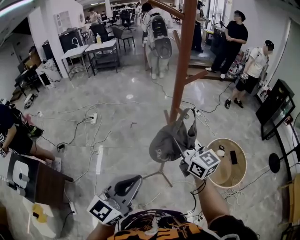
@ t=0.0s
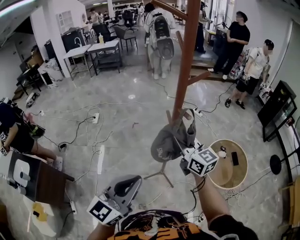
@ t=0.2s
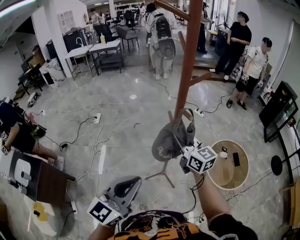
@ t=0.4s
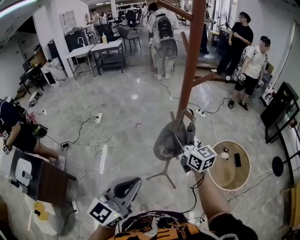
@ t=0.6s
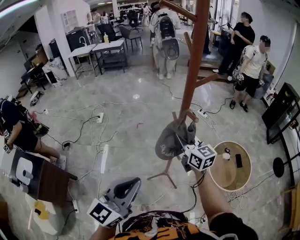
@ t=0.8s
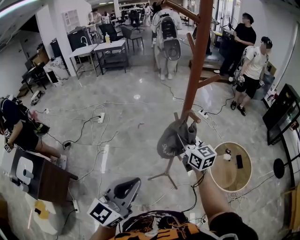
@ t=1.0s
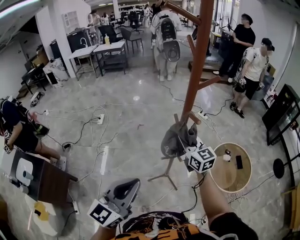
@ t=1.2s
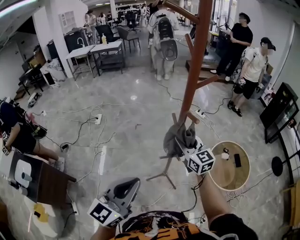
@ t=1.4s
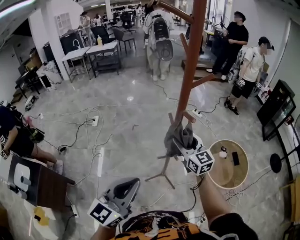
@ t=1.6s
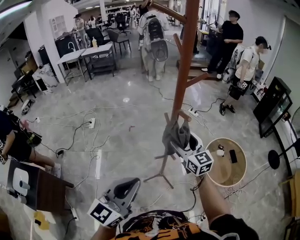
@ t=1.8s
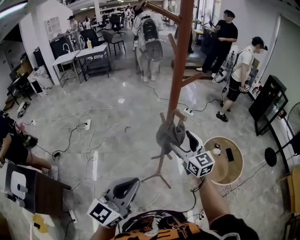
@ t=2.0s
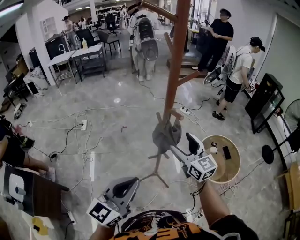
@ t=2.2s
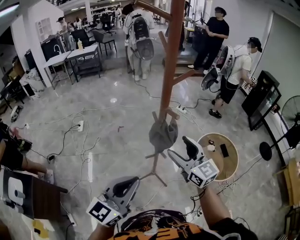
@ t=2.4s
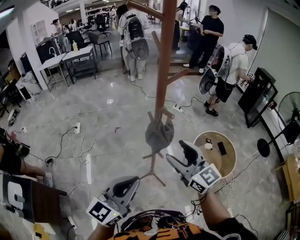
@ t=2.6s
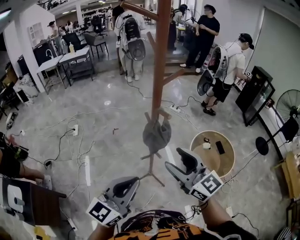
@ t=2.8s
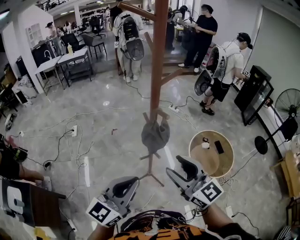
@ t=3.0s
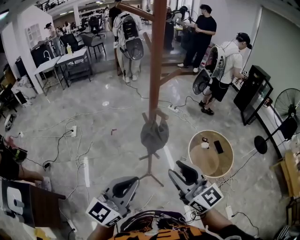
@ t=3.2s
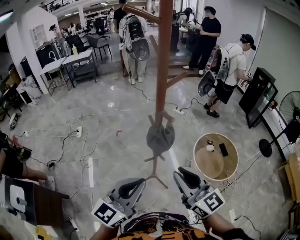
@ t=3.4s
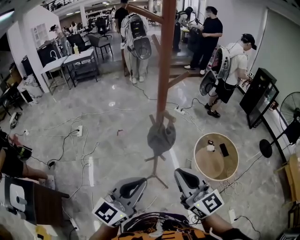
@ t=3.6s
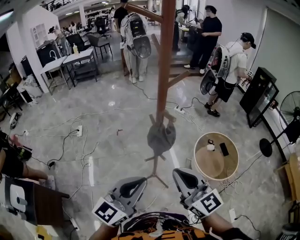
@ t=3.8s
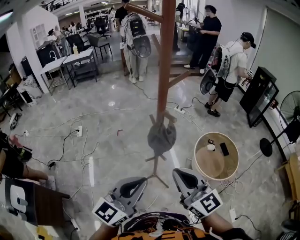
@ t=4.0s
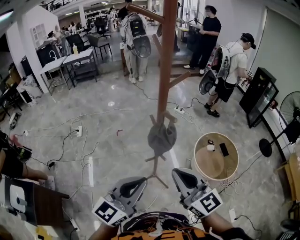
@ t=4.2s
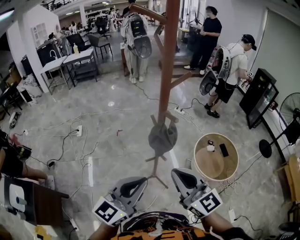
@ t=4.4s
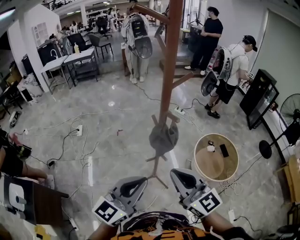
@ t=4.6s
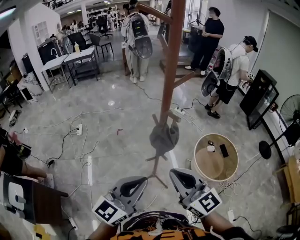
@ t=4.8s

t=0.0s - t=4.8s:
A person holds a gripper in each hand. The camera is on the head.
t=0.0s - t=1.6s: The right gripper is displaced downward and forward by about 10 cm, and opens up.
t=1.6s - t=3.2s: The left gripper changes place by roughly 5 cm; the right gripper goes some 20 cm backward and upward.
t=3.2s - t=4.8s: The right gripper closes.

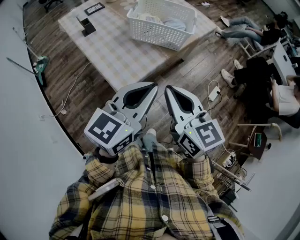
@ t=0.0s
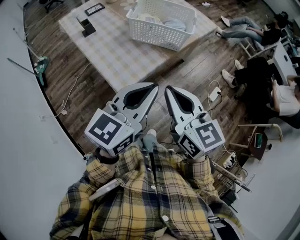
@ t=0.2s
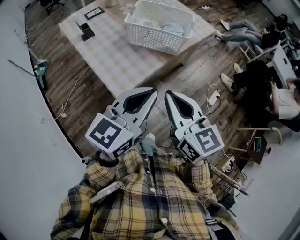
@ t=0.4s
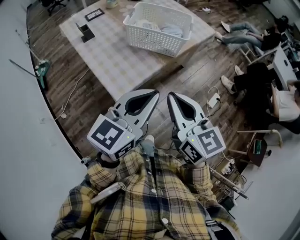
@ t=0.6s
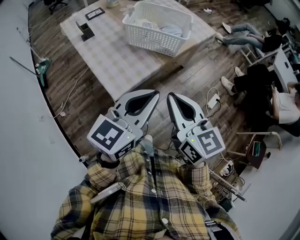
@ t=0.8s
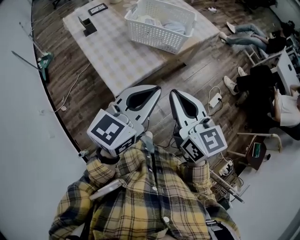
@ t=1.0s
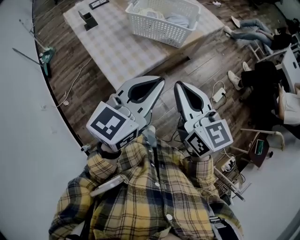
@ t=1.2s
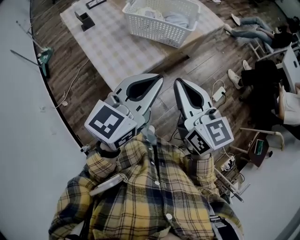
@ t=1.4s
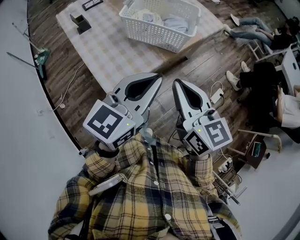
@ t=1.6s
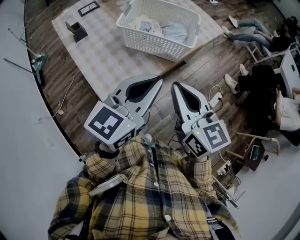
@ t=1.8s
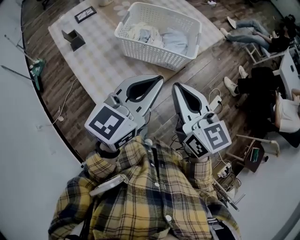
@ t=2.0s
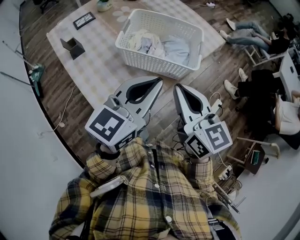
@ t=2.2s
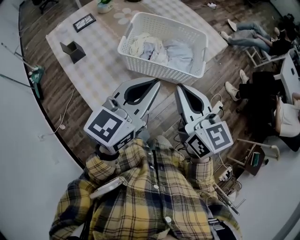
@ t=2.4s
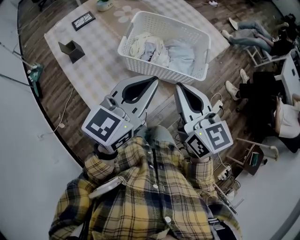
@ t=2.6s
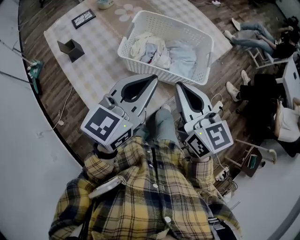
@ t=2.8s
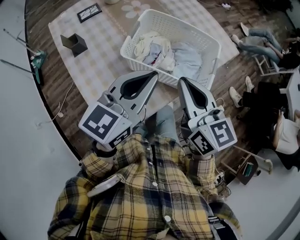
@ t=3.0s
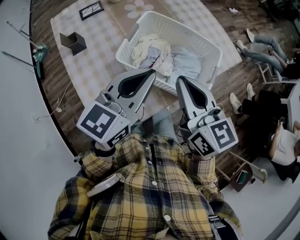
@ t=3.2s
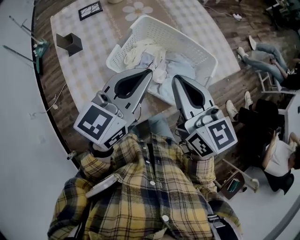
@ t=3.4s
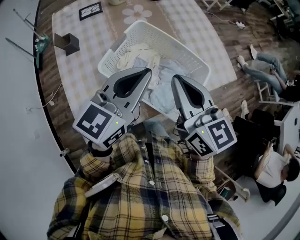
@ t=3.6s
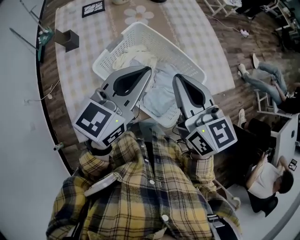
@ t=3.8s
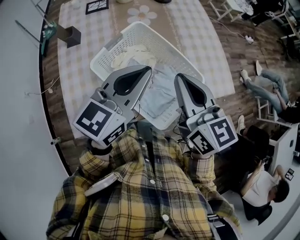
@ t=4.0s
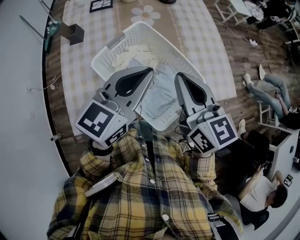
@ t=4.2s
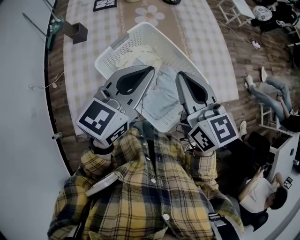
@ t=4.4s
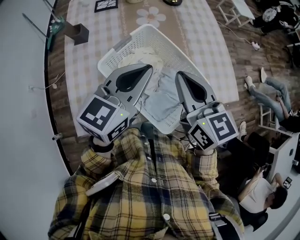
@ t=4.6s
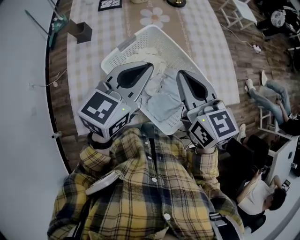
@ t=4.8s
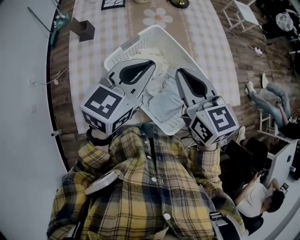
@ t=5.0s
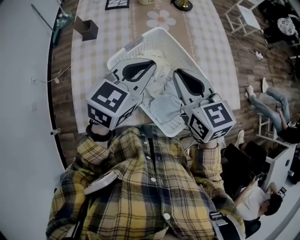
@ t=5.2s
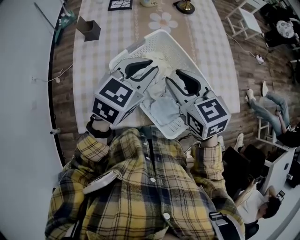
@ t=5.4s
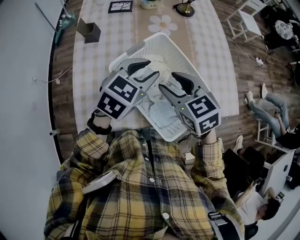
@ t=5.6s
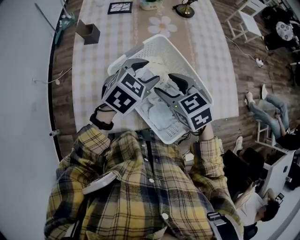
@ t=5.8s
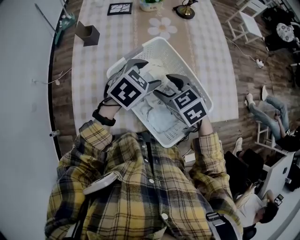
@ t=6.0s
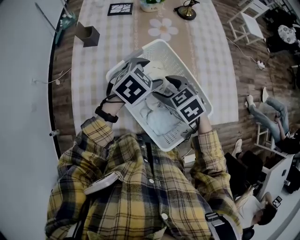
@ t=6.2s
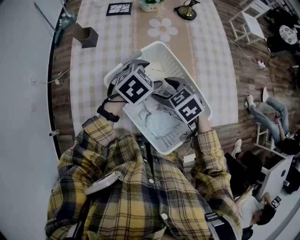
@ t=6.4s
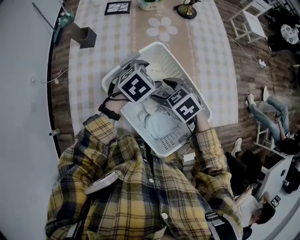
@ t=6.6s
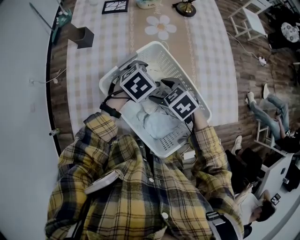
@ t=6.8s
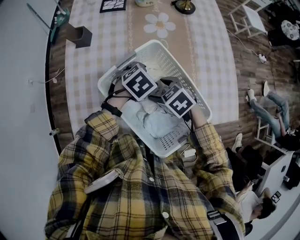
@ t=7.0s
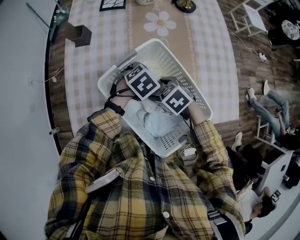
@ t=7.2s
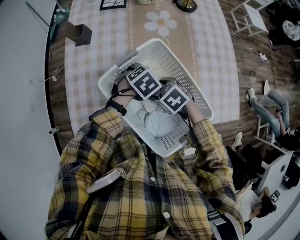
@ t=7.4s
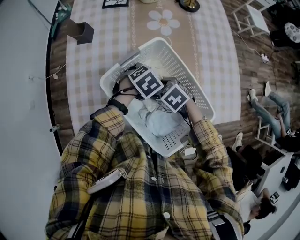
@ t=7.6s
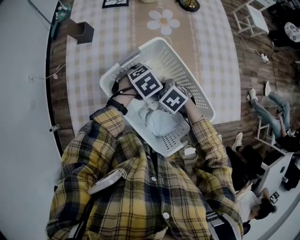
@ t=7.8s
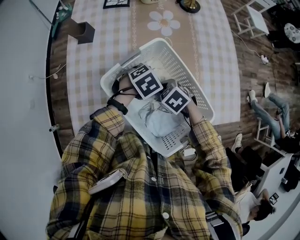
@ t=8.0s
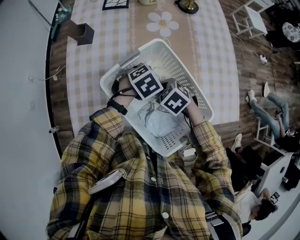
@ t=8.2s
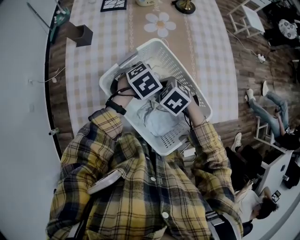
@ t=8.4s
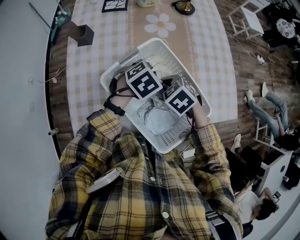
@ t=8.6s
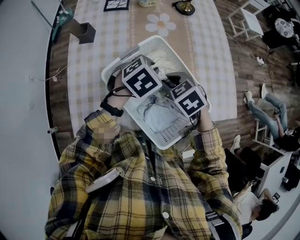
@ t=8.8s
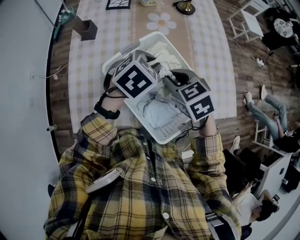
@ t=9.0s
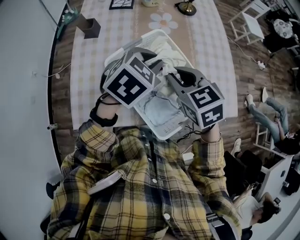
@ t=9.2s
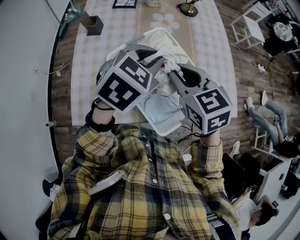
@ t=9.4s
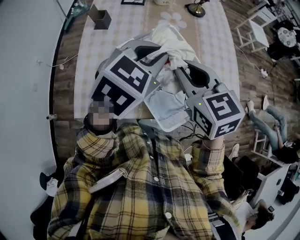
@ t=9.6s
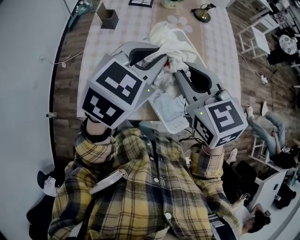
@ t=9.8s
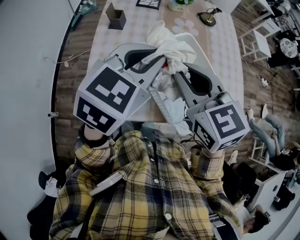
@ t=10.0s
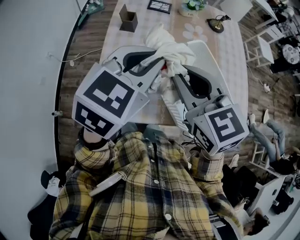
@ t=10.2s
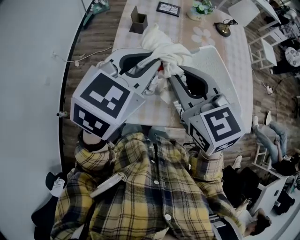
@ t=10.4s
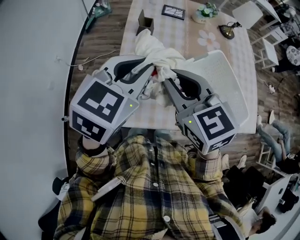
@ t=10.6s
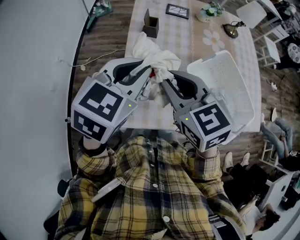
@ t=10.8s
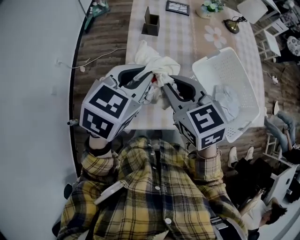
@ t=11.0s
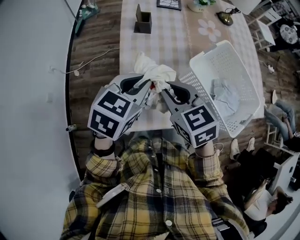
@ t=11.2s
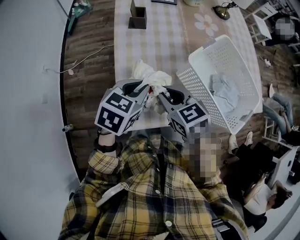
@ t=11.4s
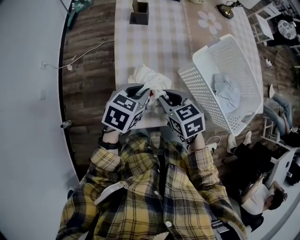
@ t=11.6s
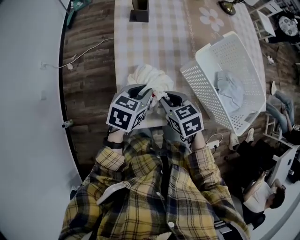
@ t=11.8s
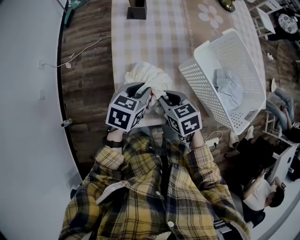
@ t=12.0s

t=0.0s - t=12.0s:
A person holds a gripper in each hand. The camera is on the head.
t=0.0s - t=1.6s: The left gripper moves forward, about 10 cm. Meanwhile the right gripper shifts approximately 10 cm forward and to the right.
t=1.6s - t=3.0s: The two grippers go roughly 25 cm forward.
t=3.0s - t=4.4s: Both grippers move forward and to the right, approximately 15 cm. The left gripper swivels roughly 20 degrees. Meanwhile the right gripper turns by some 20 degrees.
t=4.4s - t=6.0s: The left gripper travels downward and forward by roughly 15 cm, points its fingers about 40 degrees further downward, and opens its fingers. The right gripper shifts some 15 cm downward and to the left, tips its fingers downward by some 30 degrees, and opens up.
t=6.0s - t=7.6s: The two grippers go approximately 15 cm downward. The left gripper swivels approximately 20 degrees, while the right gripper swivels approximately 20 degrees.
t=7.6s - t=9.0s: The two grippers go roughly 15 cm upward. The left gripper turns by approximately 20 degrees, and closes; the right gripper swivels roughly 30 degrees, and closes.
t=9.0s - t=10.4s: Both grippers travel together to the left and upward, approximately 30 cm. The right gripper turns by roughly 20 degrees, while the left gripper changes its angle by some 30 degrees.
t=10.4s - t=12.0s: The grippers both shift downward by about 30 cm. The left gripper swivels about 30 degrees. Meanwhile the right gripper swivels approximately 30 degrees.

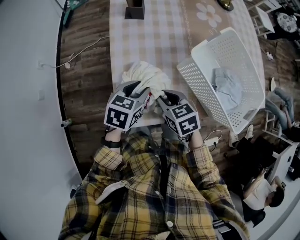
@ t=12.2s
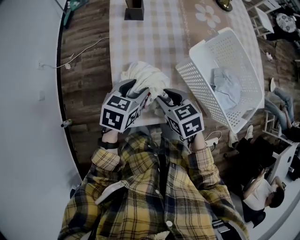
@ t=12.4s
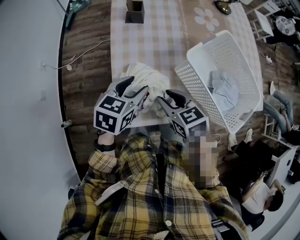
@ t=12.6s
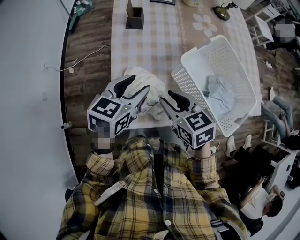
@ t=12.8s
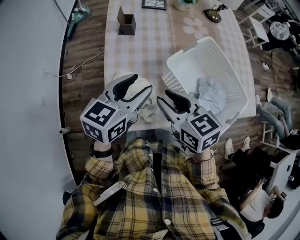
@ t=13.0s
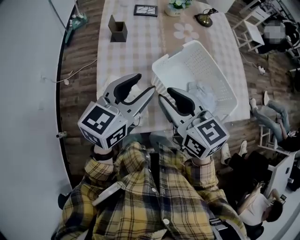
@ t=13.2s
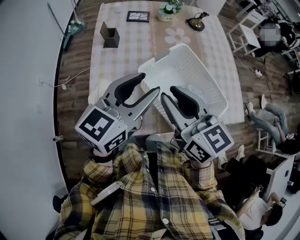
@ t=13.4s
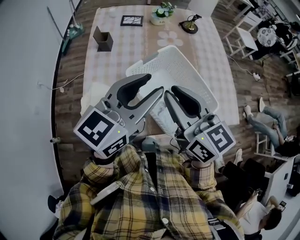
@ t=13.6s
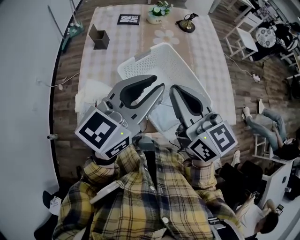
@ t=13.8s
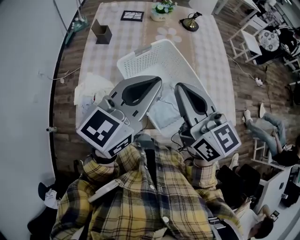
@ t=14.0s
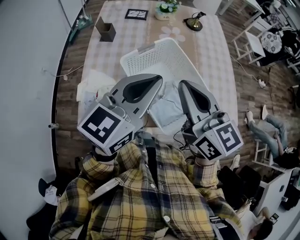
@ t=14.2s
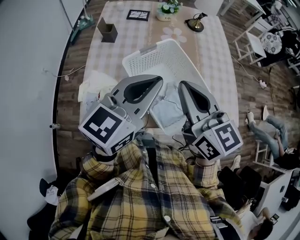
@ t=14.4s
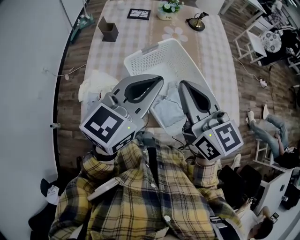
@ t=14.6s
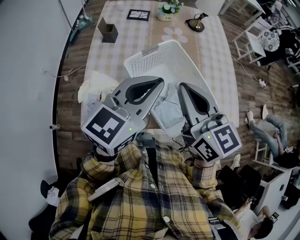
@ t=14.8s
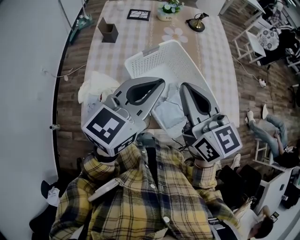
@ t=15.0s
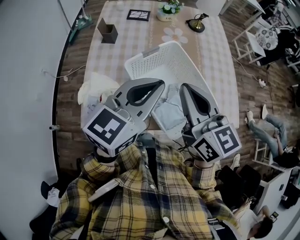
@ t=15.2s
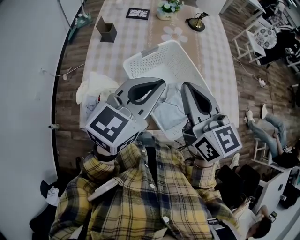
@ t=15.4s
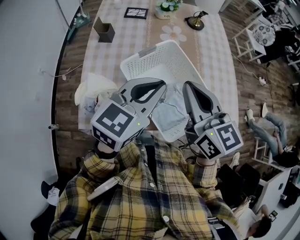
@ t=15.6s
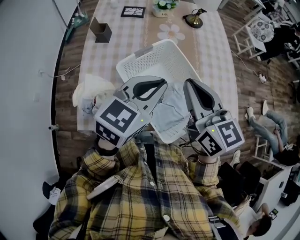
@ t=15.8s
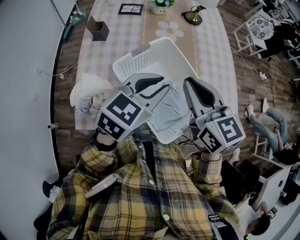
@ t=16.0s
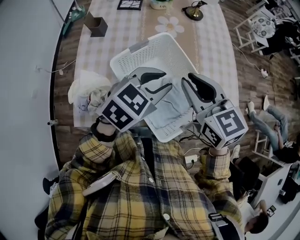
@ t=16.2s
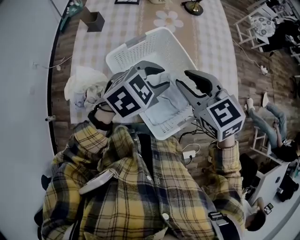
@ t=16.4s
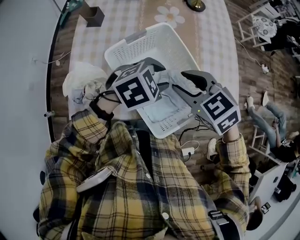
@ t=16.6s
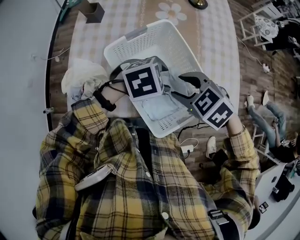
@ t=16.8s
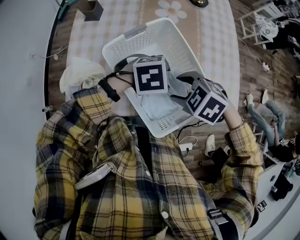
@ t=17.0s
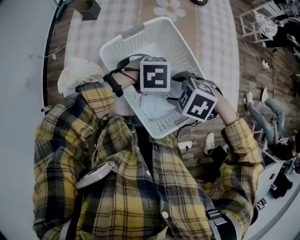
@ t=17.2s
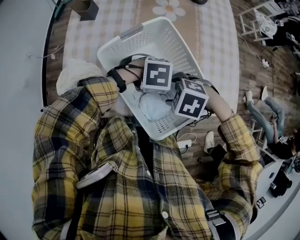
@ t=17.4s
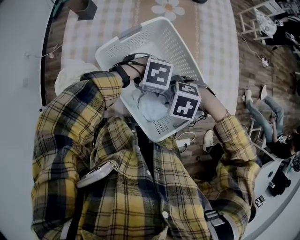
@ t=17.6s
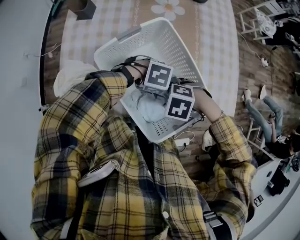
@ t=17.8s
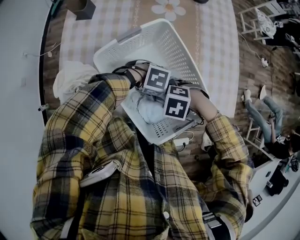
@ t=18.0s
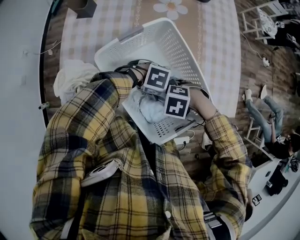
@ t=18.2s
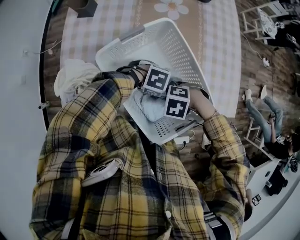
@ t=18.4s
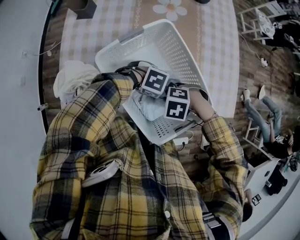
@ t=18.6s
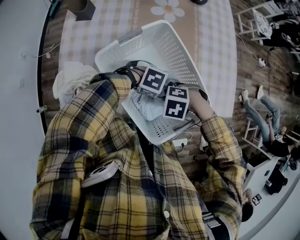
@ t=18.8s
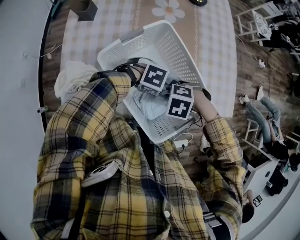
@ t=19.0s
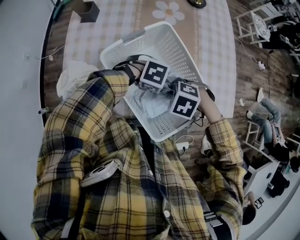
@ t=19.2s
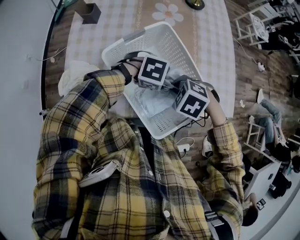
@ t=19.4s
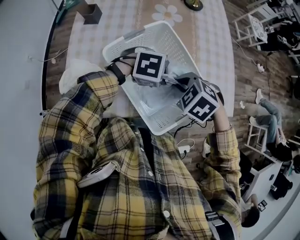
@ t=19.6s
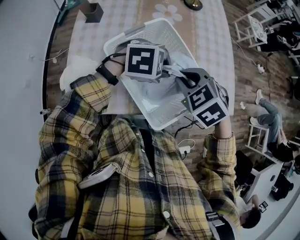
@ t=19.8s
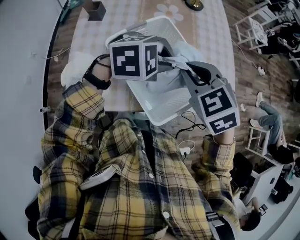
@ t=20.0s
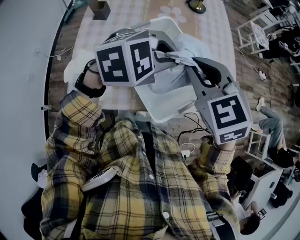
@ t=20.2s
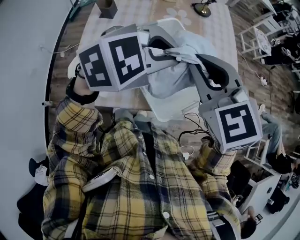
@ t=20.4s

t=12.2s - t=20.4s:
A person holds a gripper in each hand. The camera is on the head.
t=12.2s - t=13.8s: Both grippers travel together upward and to the right, approximately 40 cm. The right gripper angles its fingers upward, by roughly 40 degrees, while the left gripper angles its fingers upward, by roughly 40 degrees.
t=13.8s - t=15.4s: The grippers stay close to where they were, moving slightly.
t=15.4s - t=17.2s: The two grippers go some 25 cm downward. The right gripper tilts its fingers about 60 degrees downward, and opens its fingers. The left gripper angles its fingers downward, by some 50 degrees, and opens.
t=17.2s - t=18.8s: The two grippers go about 10 cm downward. The left gripper rotates some 30 degrees, and closes up; the right gripper closes its fingers.
t=18.8s - t=20.4s: Both grippers travel together upward, about 35 cm. The right gripper points its fingers some 50 degrees further upward. Meanwhile the left gripper changes its angle by approximately 60 degrees.
